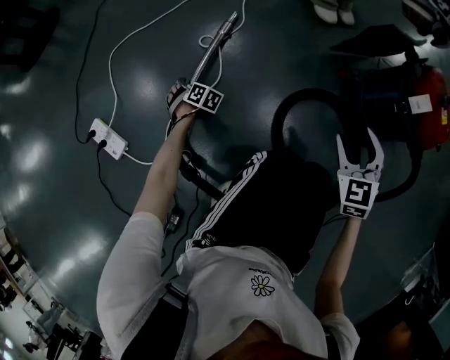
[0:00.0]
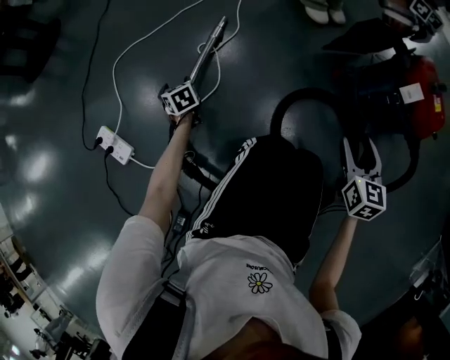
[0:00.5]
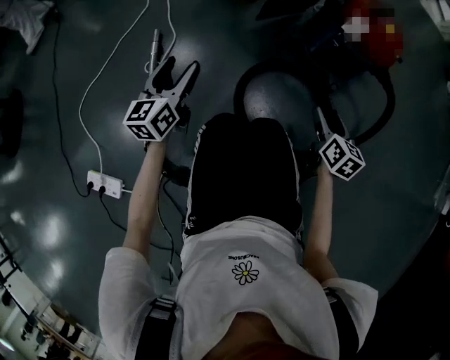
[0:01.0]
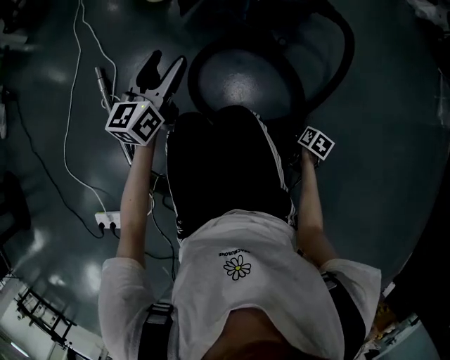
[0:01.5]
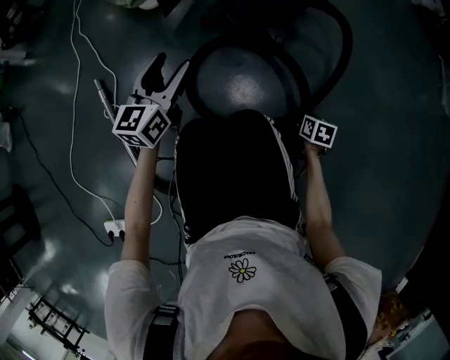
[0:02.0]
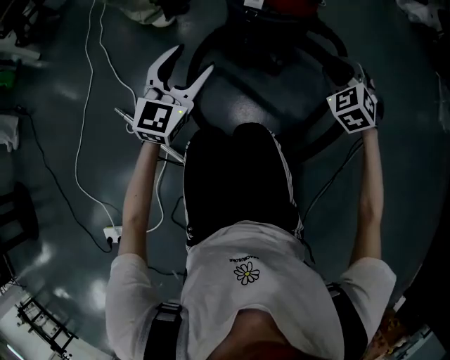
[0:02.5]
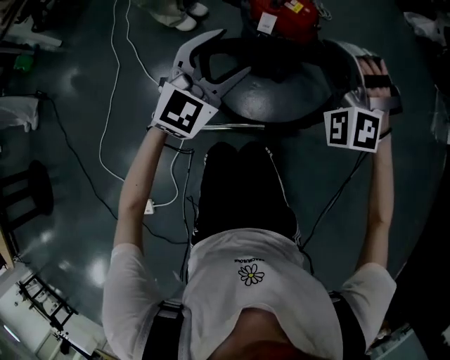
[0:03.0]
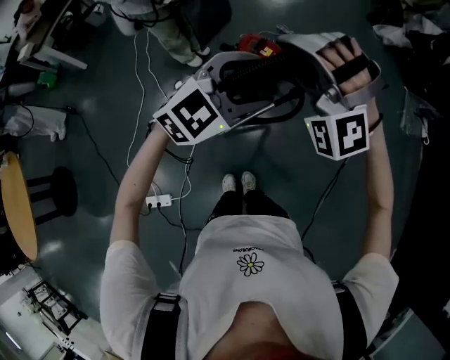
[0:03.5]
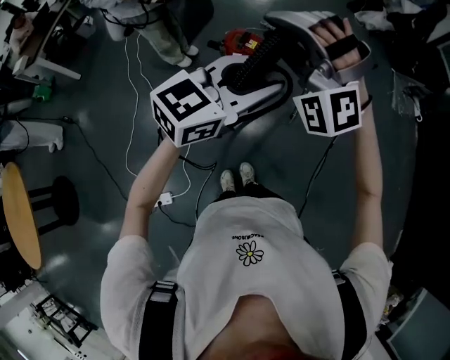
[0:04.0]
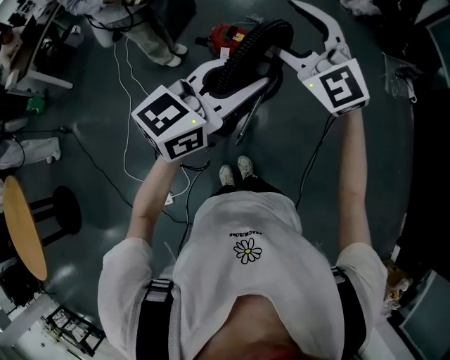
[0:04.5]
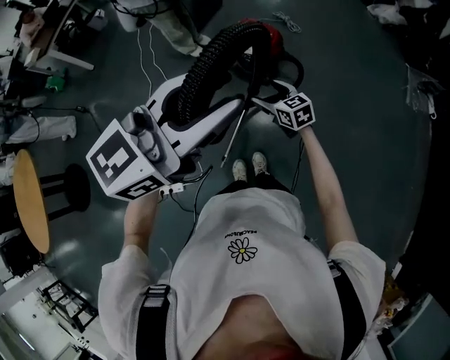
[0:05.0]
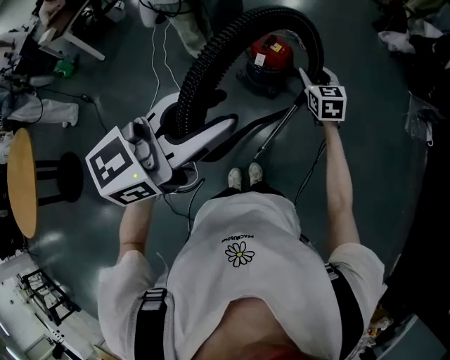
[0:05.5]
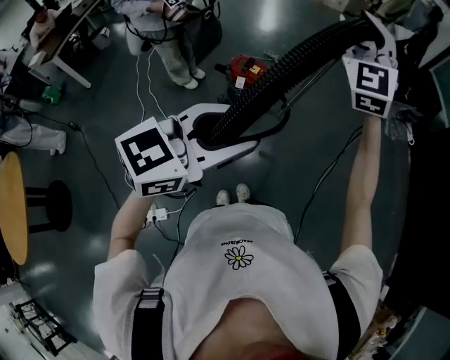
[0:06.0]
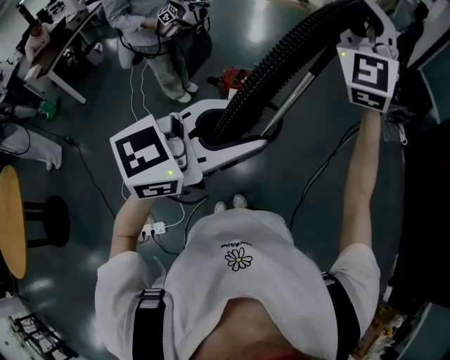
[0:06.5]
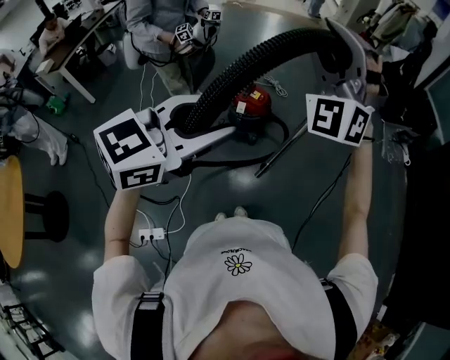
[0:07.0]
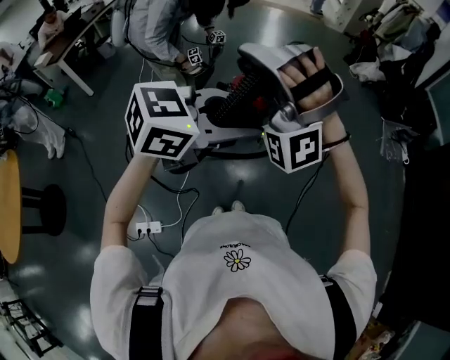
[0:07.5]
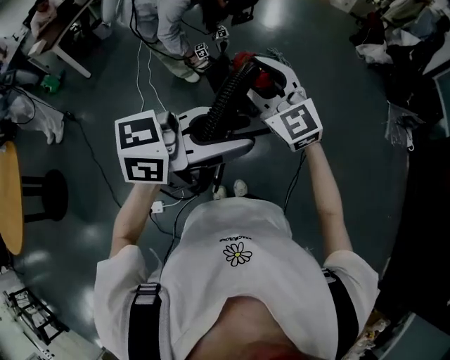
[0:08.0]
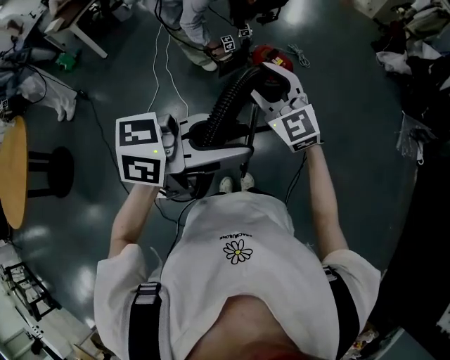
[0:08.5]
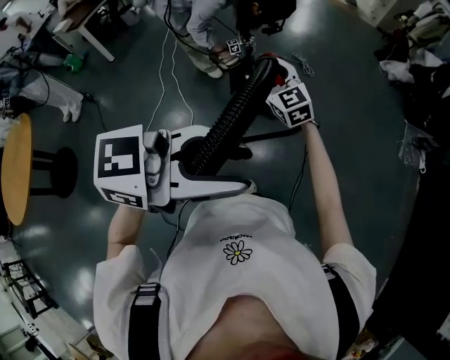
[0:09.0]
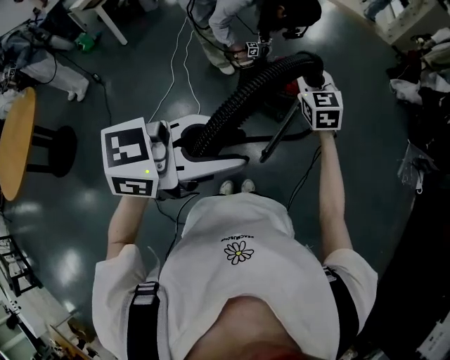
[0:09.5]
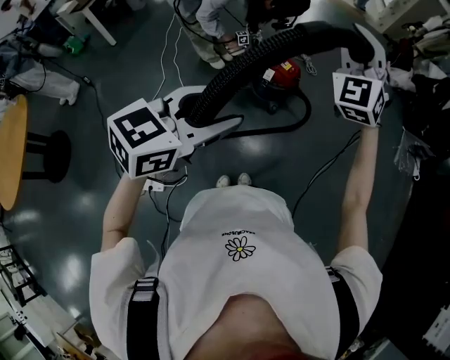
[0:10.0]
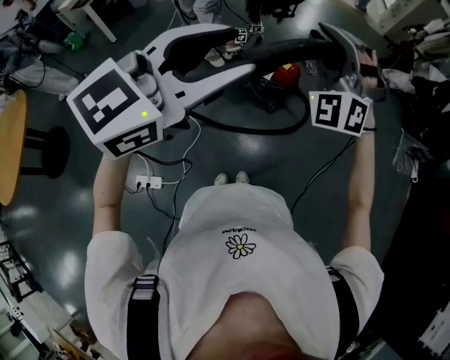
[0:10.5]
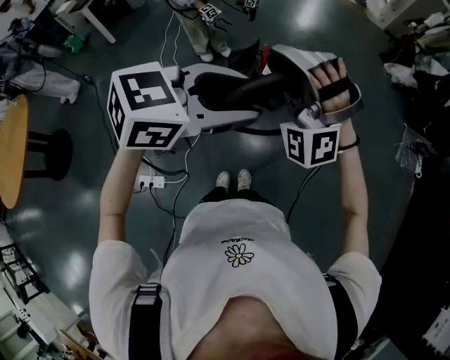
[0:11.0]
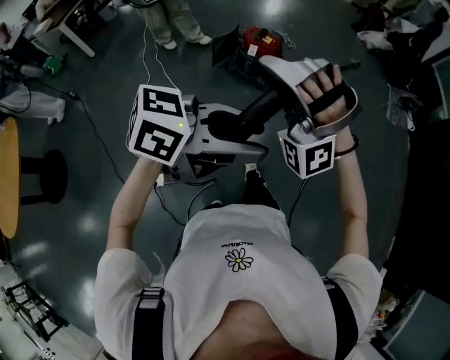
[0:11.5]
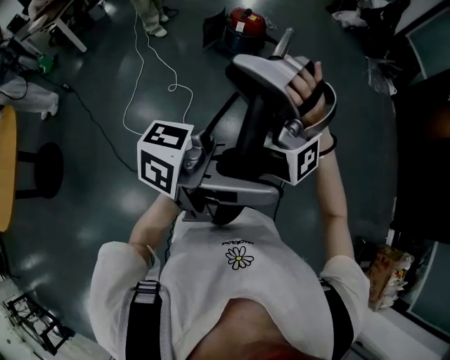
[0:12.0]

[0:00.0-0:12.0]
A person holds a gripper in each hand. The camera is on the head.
0:00.0 to 0:02.0: The right gripper ends up about 40 cm from where it was, and rolls clockwise, seen from behind, by roughly 80 degrees, while the left gripper shifts by roughly 50 cm, and tilts its fingers roughly 50 degrees upward.
0:02.0 to 0:04.0: The two grippers go some 90 cm upward. The right gripper rotates around the line of its fingers by some 120 degrees, counterclockwise from behind. Meanwhile the left gripper changes its angle by some 40 degrees, and closes its fingers.
0:04.0 to 0:06.0: The right gripper moves roughly 35 cm downward and comes back, rolls clockwise, seen from behind, by approximately 40 degrees, and opens, then closes again, while the left gripper ends up some 15 cm from where it was.
0:06.0 to 0:08.0: The left gripper goes to the left and returns, some 5 cm each way, and swivels about 20 degrees, while the right gripper moves downward, to the left and backward, some 25 cm, and turns by some 50 degrees.
0:08.0 to 0:10.0: The right gripper goes roughly 15 cm upward, forward and to the right, and turns by about 40 degrees. The left gripper moves to the left, approximately 10 cm, and changes its angle by some 30 degrees.
0:10.0 to 0:12.0: The pair of grippers is taken roughly 60 cm. The right gripper changes its angle by approximately 40 degrees, while the left gripper angles its fingers upward, by some 40 degrees.

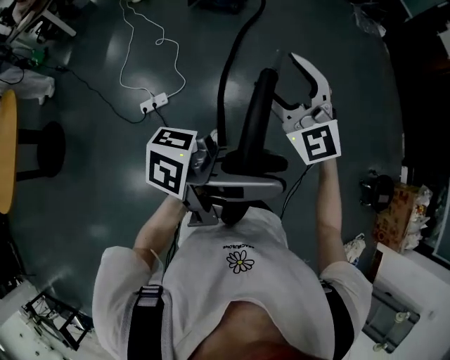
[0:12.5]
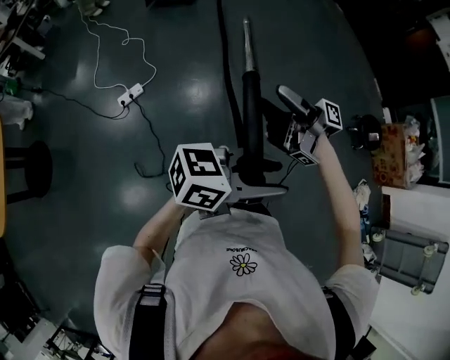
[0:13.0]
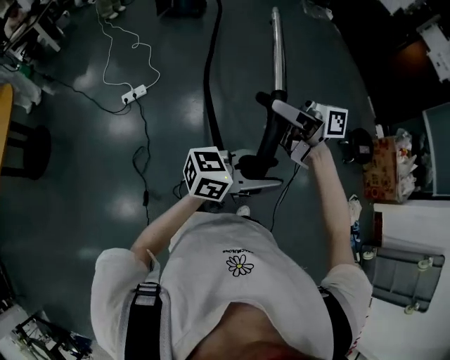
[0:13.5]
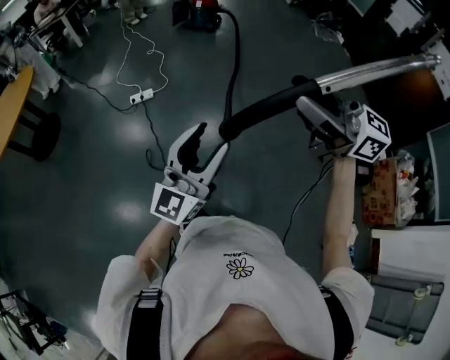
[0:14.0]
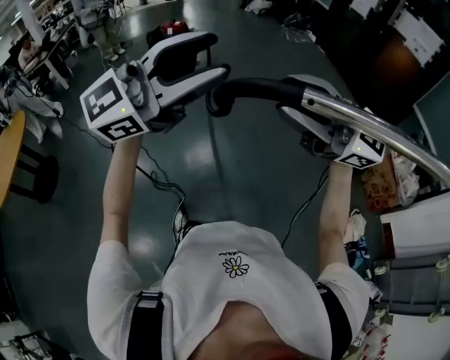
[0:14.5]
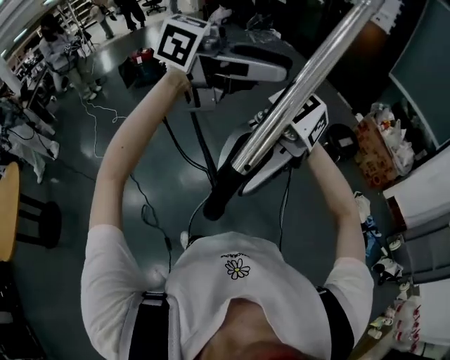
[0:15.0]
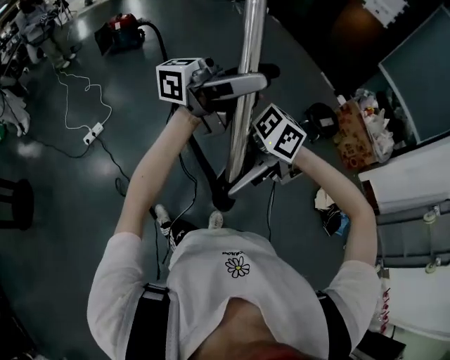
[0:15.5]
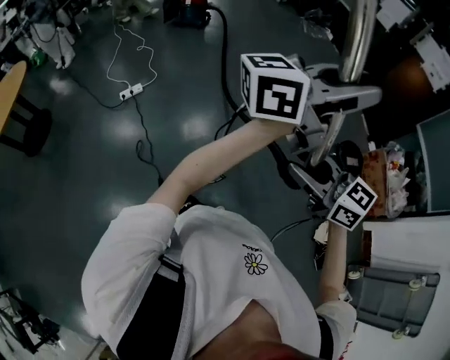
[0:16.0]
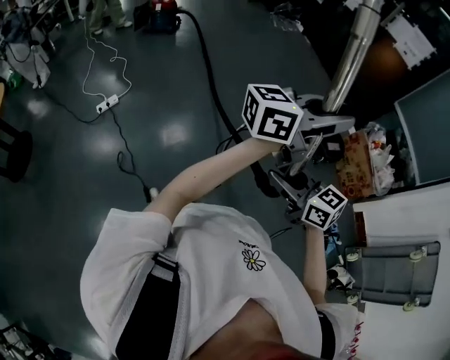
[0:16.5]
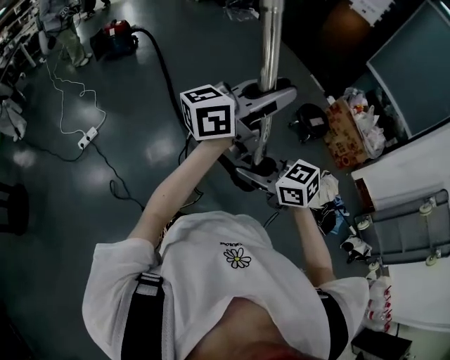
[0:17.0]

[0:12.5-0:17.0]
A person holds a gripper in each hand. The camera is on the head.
0:12.5 to 0:14.5: The pair of grippers is taken roughly 60 cm. The left gripper rotates around the line of its fingers by roughly 80 degrees, clockwise from behind. The right gripper rotates about 40 degrees, and closes its fingers.
0:14.5 to 0:17.0: The right gripper heads downward, covering about 25 cm, and points its fingers approximately 30 degrees further downward. Meanwhile the left gripper goes up and down, some 10 cm each way, reversing 2 times, and twists about 40 degrees counterclockwise, seen from behind.

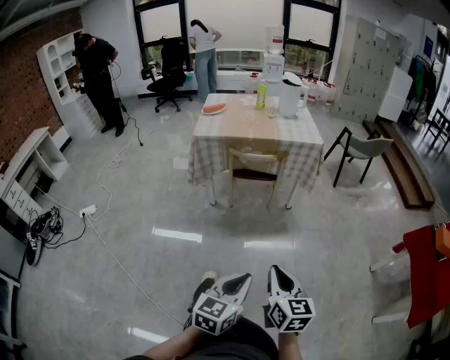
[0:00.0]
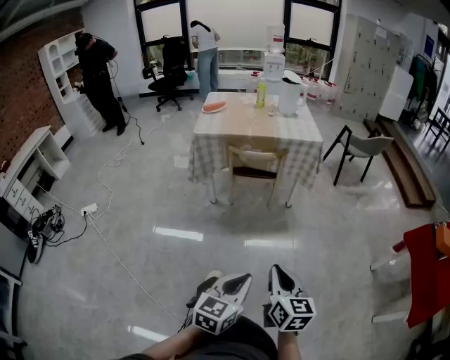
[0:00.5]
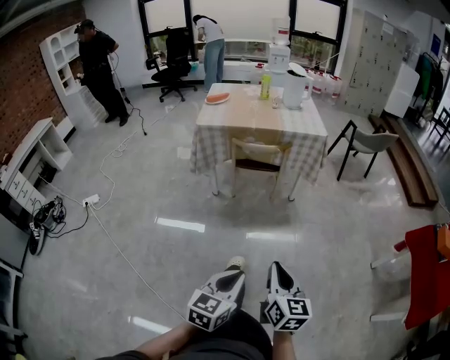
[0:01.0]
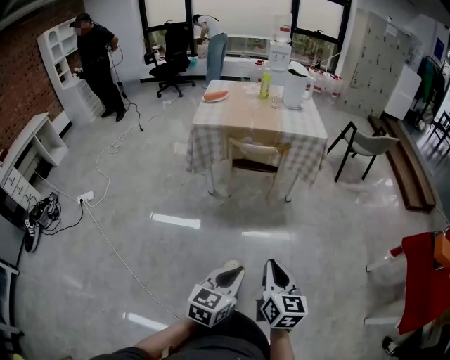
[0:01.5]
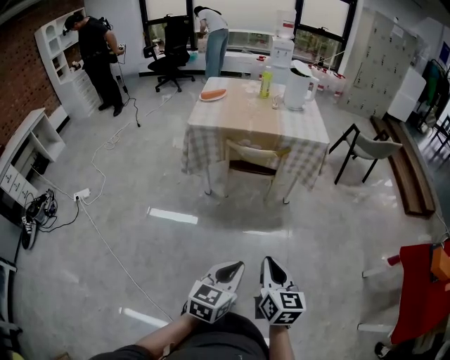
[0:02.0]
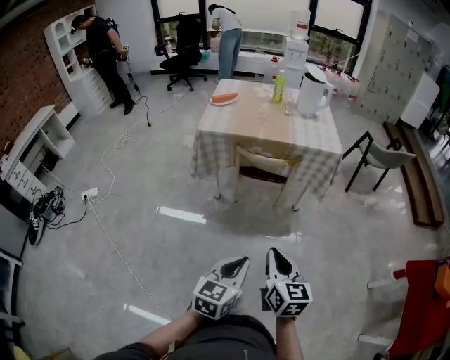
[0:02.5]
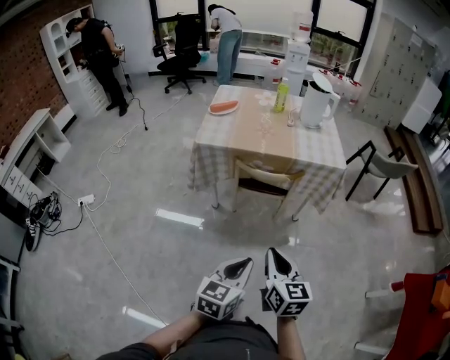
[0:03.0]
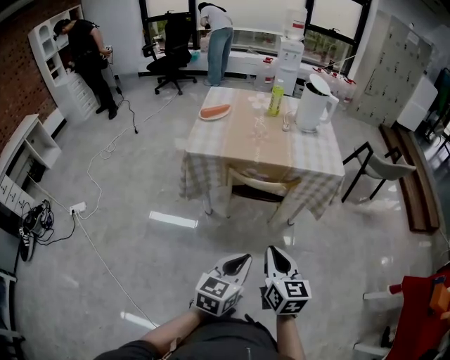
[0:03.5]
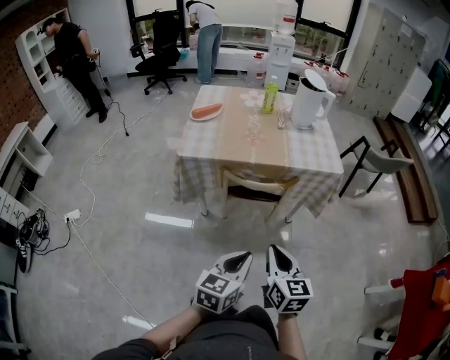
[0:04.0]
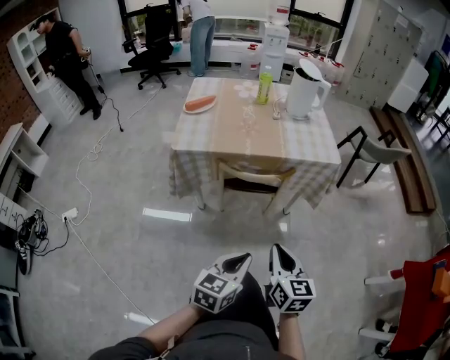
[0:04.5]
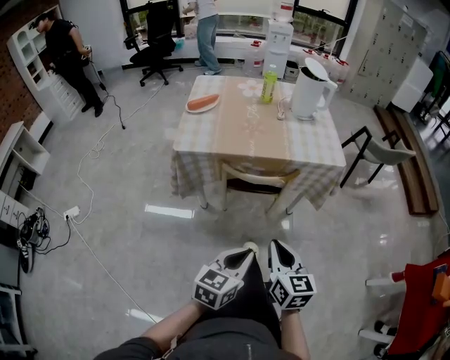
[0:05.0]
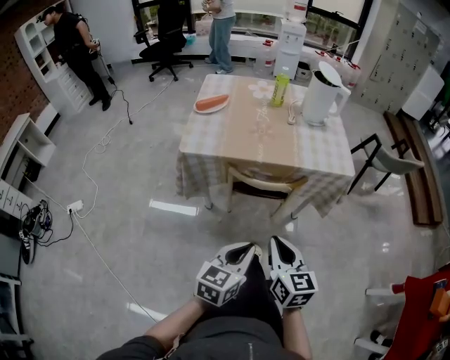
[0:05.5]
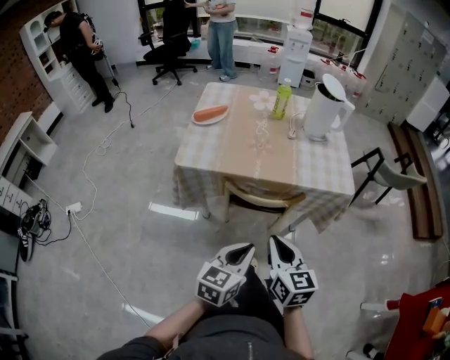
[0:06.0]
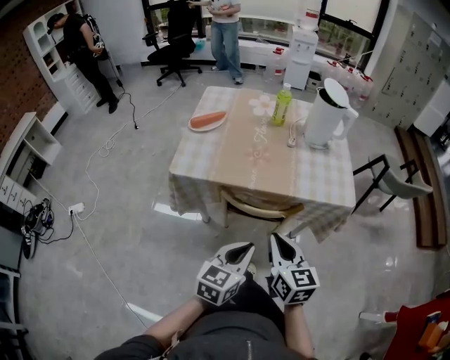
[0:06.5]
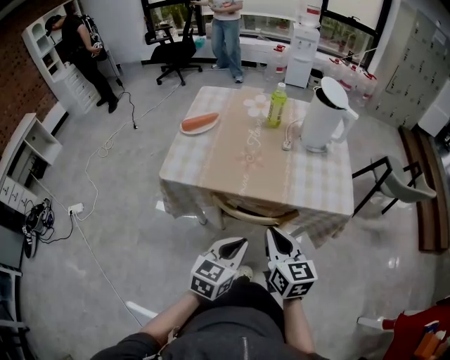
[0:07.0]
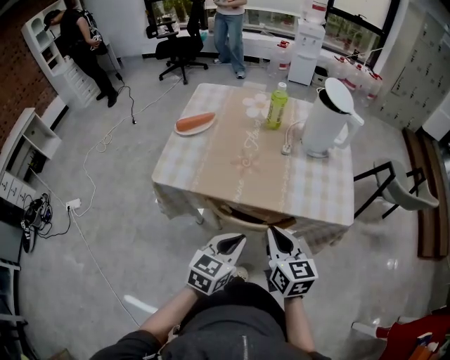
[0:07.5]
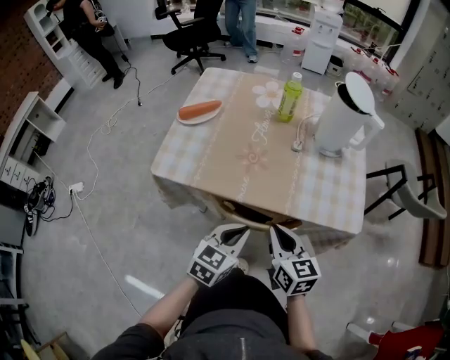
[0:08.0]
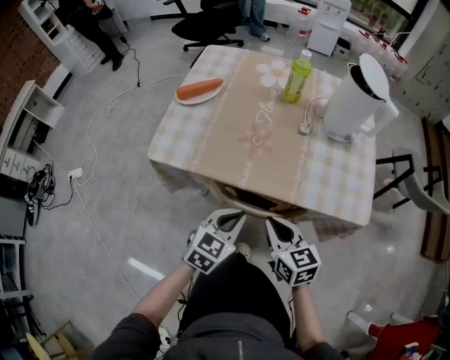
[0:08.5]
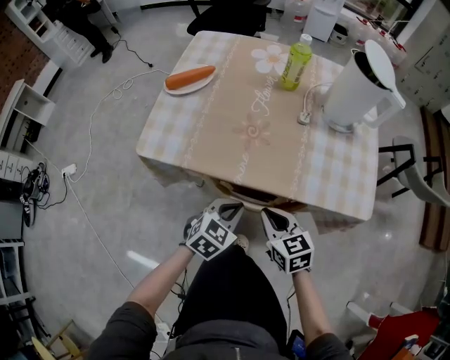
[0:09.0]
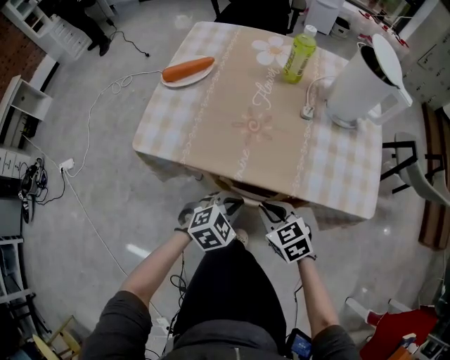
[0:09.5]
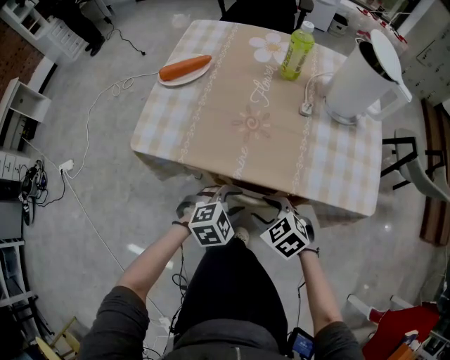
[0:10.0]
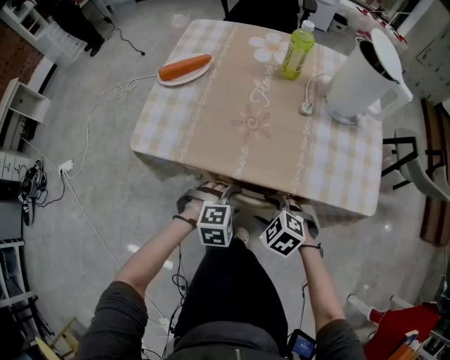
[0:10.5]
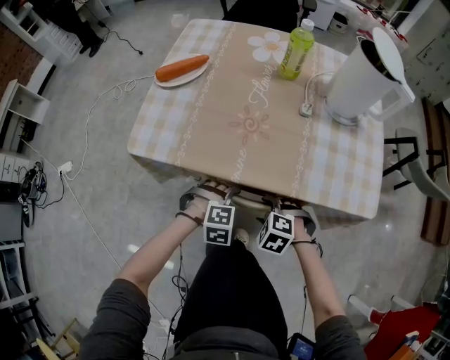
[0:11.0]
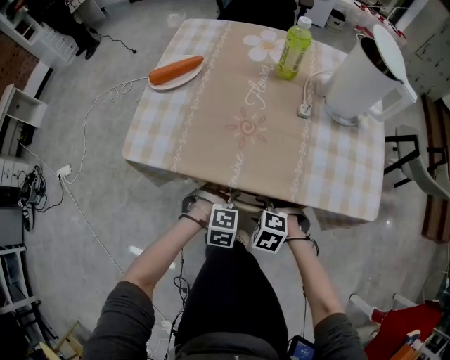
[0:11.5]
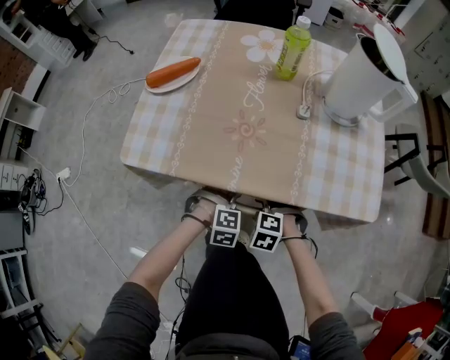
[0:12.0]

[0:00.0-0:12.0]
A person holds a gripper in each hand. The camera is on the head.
0:00.0 to 0:02.0: Both grippers move forward, roughly 10 cm.
0:02.0 to 0:04.0: Both grippers move forward, about 25 cm.
0:04.0 to 0:06.0: Both grippers move forward, about 15 cm.
0:06.0 to 0:08.0: The two grippers go about 20 cm forward.
0:08.0 to 0:10.0: Both grippers move downward, about 15 cm. The right gripper tips its fingers downward by approximately 30 degrees, and opens. The left gripper rotates some 50 degrees, and opens its fingers.
0:10.0 to 0:12.0: The two grippers go roughly 10 cm downward. The right gripper changes its angle by some 30 degrees, while the left gripper changes its angle by approximately 40 degrees.
